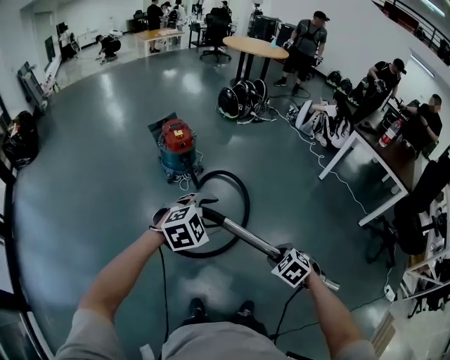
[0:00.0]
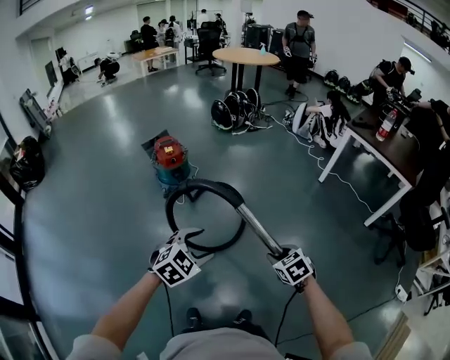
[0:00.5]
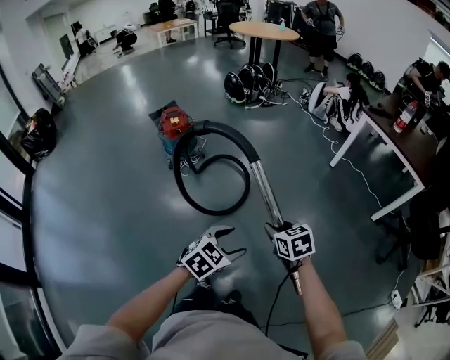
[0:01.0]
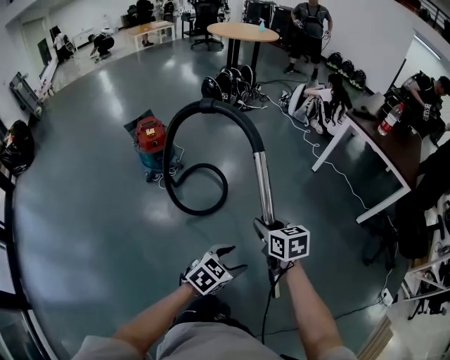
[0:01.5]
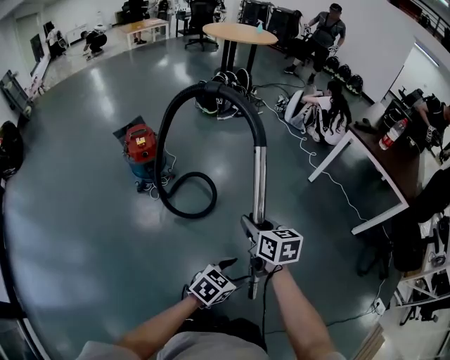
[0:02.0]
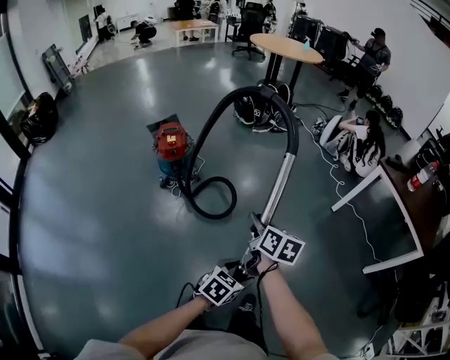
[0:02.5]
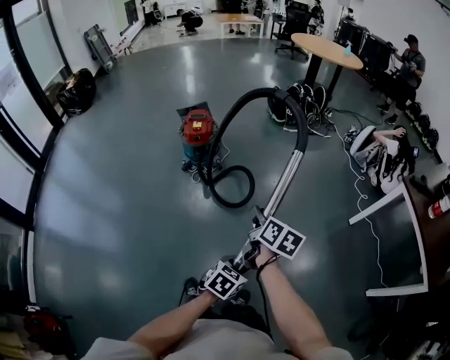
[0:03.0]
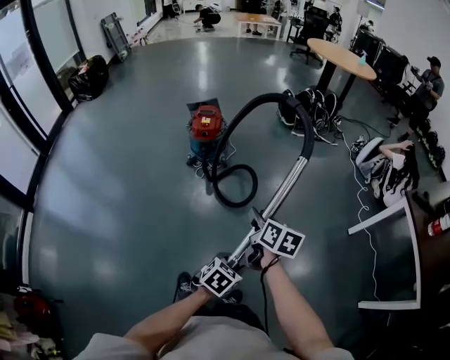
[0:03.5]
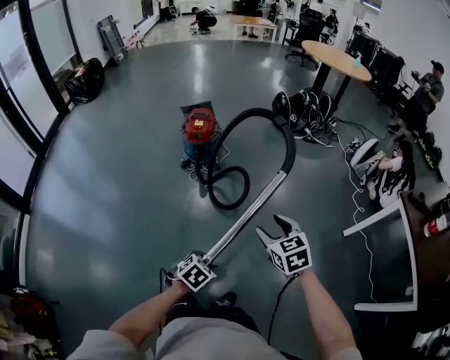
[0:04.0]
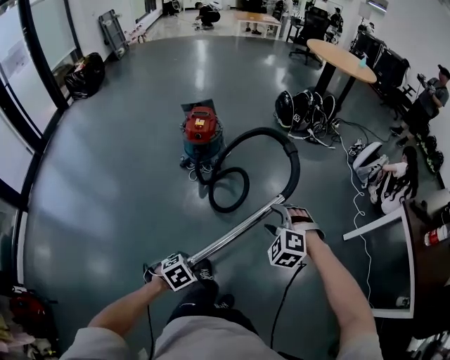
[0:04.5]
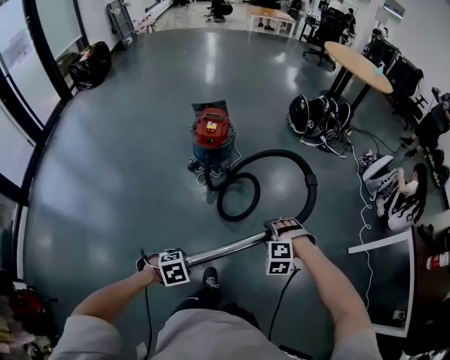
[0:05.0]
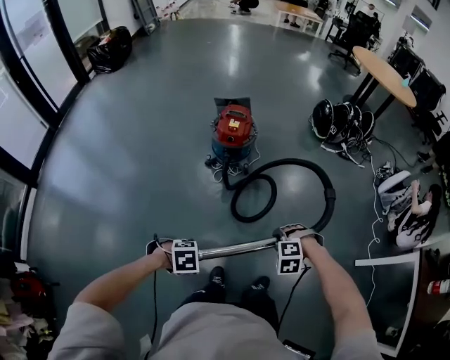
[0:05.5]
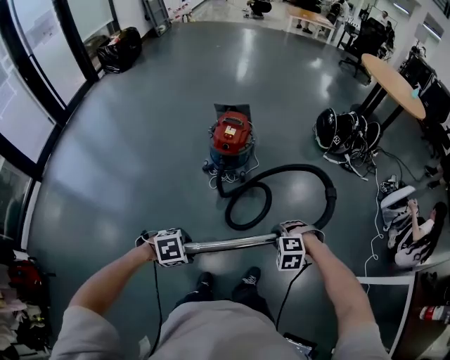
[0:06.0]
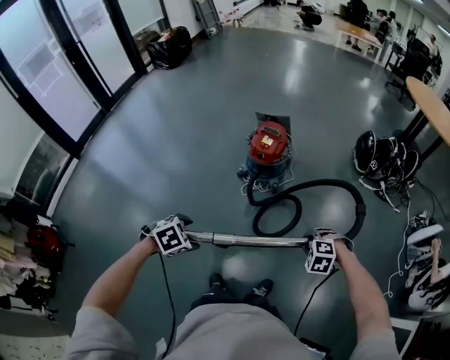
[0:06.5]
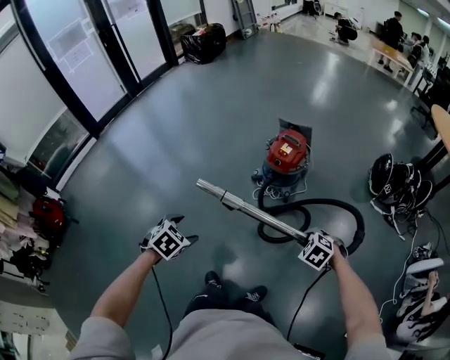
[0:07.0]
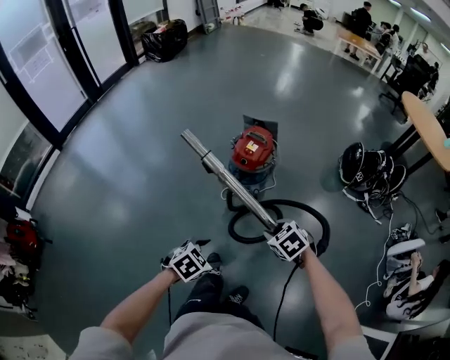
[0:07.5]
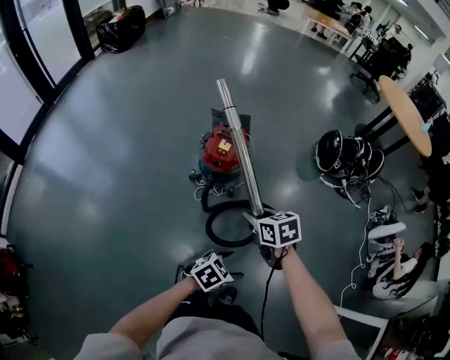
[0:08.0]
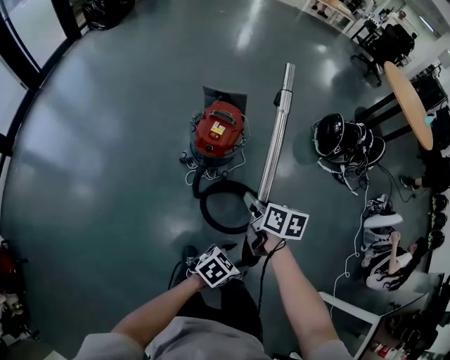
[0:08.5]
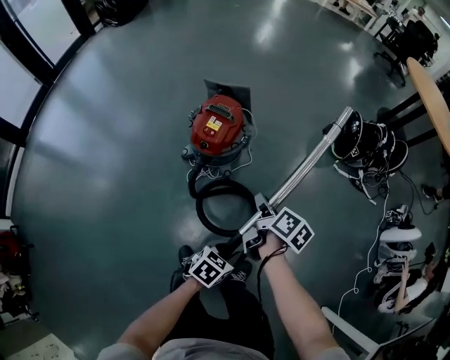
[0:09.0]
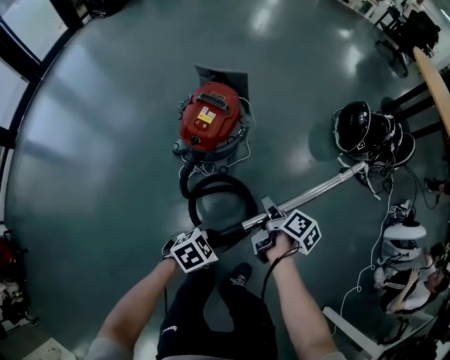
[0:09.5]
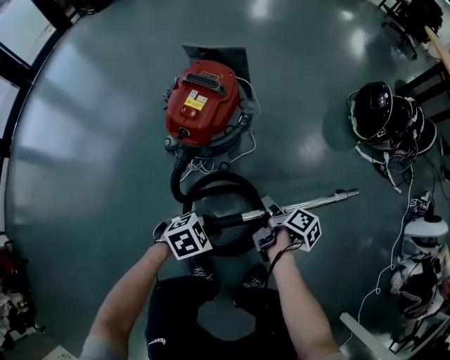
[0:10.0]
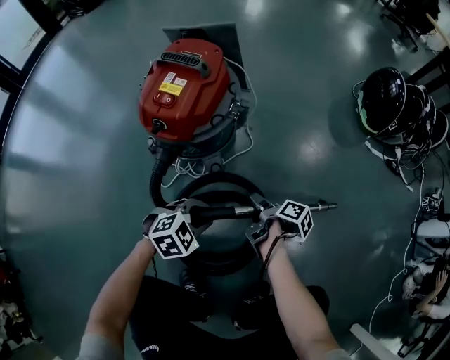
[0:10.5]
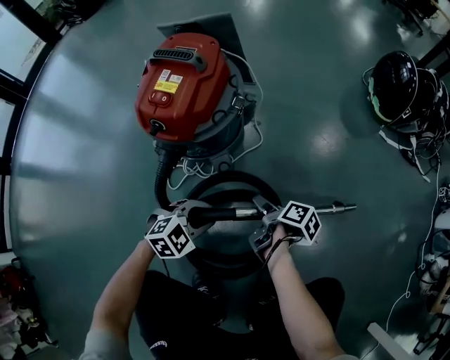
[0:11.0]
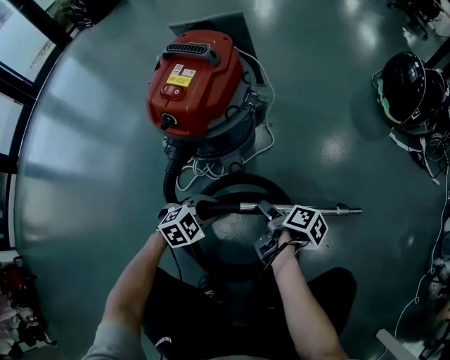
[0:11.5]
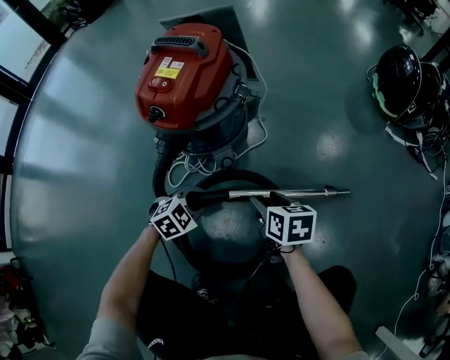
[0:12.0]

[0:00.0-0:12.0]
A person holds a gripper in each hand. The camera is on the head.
0:00.0 to 0:02.0: The left gripper goes some 35 cm to the right, forward and downward, and rotates around the line of its fingers by about 40 degrees, counterclockwise from behind. The right gripper goes roughly 35 cm forward, and tilts its fingers roughly 40 degrees upward.
0:02.0 to 0:04.0: The right gripper shifts by roughly 15 cm, twists roughly 40 degrees counterclockwise, seen from behind, and opens its fingers; the left gripper travels downward by about 10 cm, swivels roughly 40 degrees, and closes its fingers.
0:04.0 to 0:06.0: The right gripper changes place by some 30 cm, twists roughly 70 degrees counterclockwise, seen from behind, and closes up; the left gripper moves roughly 25 cm.
0:06.0 to 0:08.0: The right gripper changes place by approximately 30 cm, and twists roughly 70 degrees clockwise, seen from behind; the left gripper changes place by roughly 25 cm, and rotates some 30 degrees.
0:08.0 to 0:10.0: The two grippers go about 40 cm downward and forward. The right gripper rotates around the line of its fingers by roughly 80 degrees, clockwise from behind, while the left gripper closes up.
0:10.0 to 0:12.0: The two grippers go about 20 cm downward. The right gripper rotates around the line of its fingers by approximately 60 degrees, counterclockwise from behind.

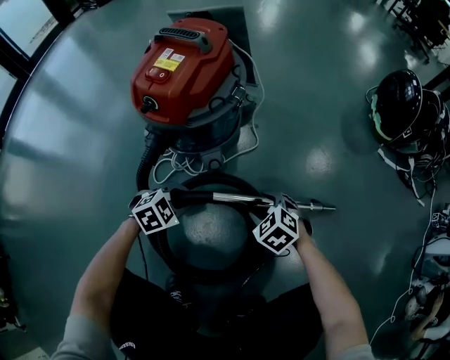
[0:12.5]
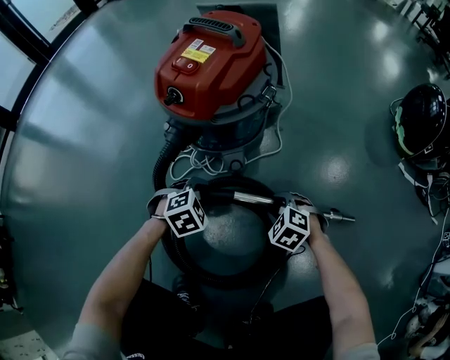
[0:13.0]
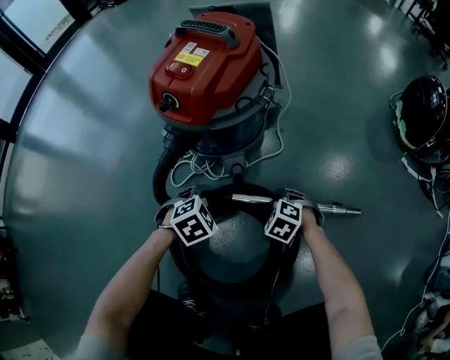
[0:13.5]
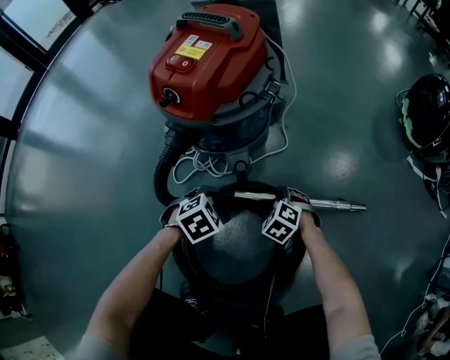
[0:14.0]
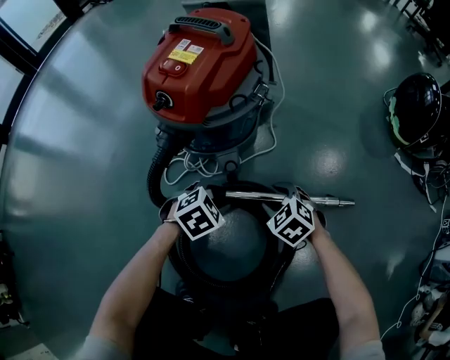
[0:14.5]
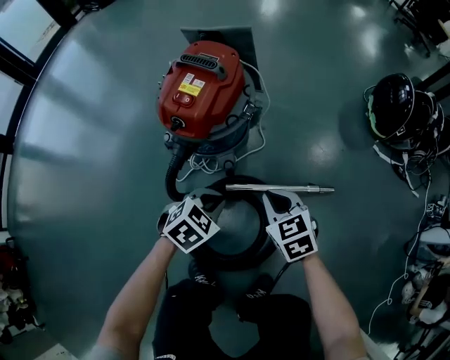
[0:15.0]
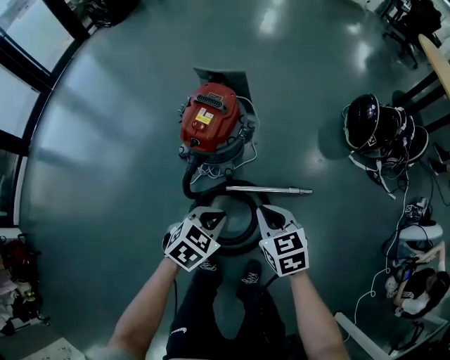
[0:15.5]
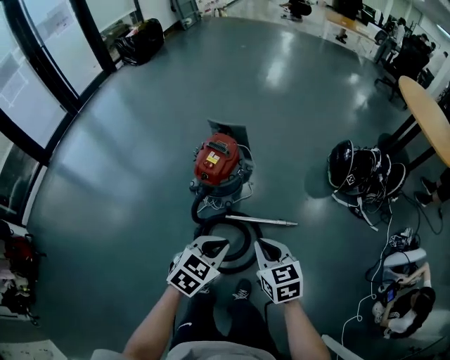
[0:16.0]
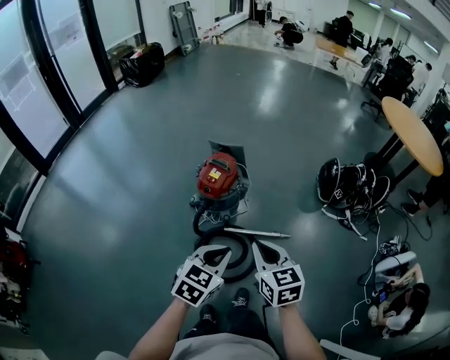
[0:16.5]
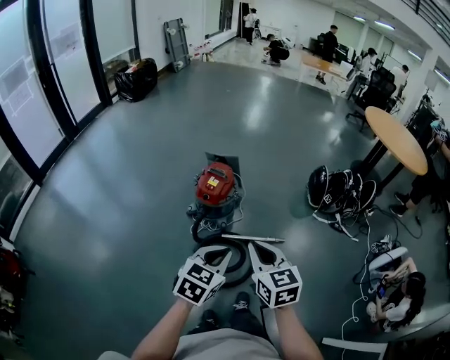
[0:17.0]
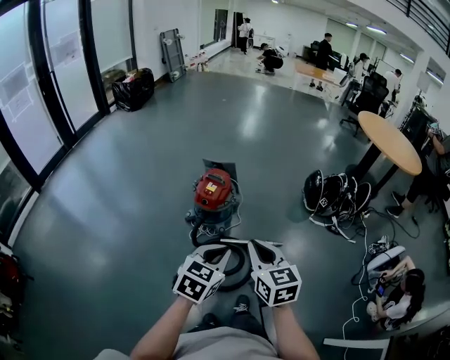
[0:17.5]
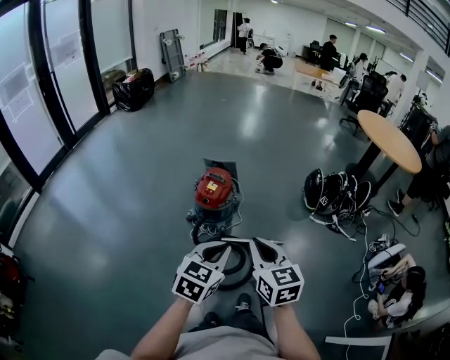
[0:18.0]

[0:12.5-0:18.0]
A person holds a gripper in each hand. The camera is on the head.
0:12.5 to 0:14.5: The right gripper goes downward and returns, approximately 10 cm each way. The left gripper goes some 5 cm to the right.
0:14.5 to 0:16.0: The two grippers go roughly 70 cm upward. The left gripper swivels roughly 30 degrees, and closes up. Meanwhile the right gripper swivels some 40 degrees, and closes.
0:16.0 to 0:18.0: The left gripper goes roughly 25 cm backward and upward; the right gripper travels upward and backward by approximately 25 cm, and turns by roughly 20 degrees.

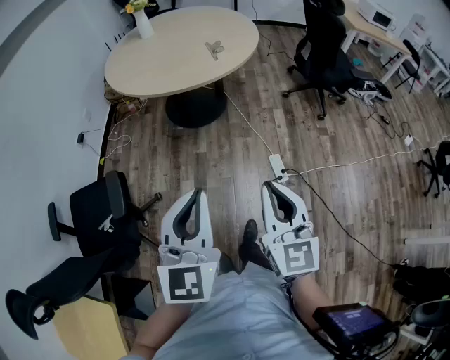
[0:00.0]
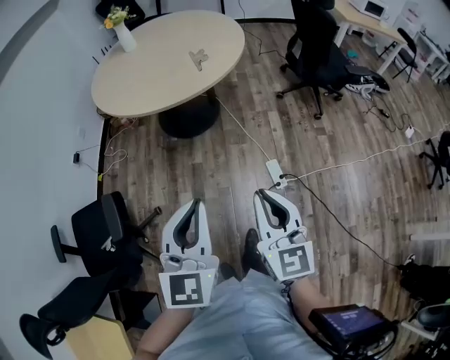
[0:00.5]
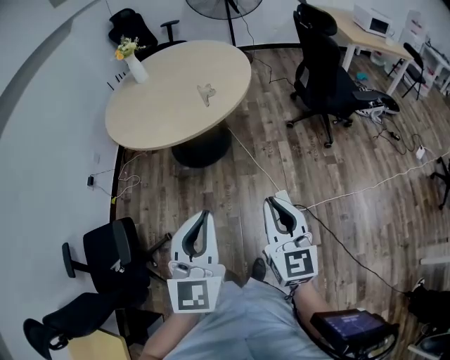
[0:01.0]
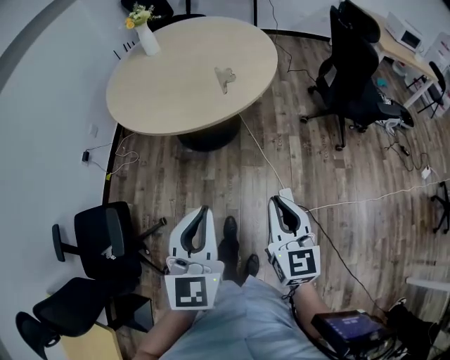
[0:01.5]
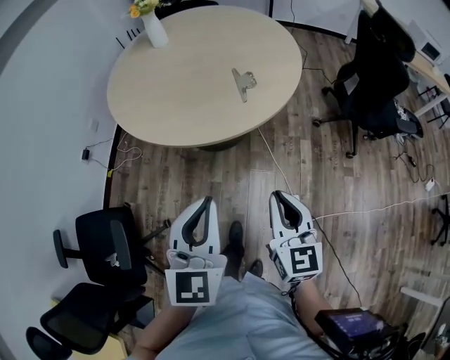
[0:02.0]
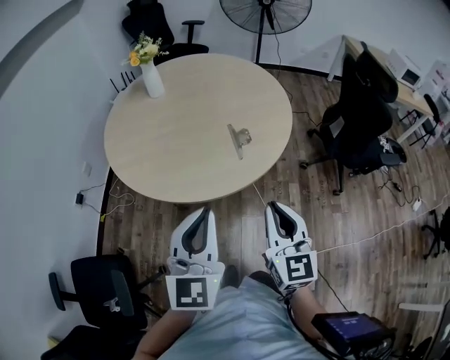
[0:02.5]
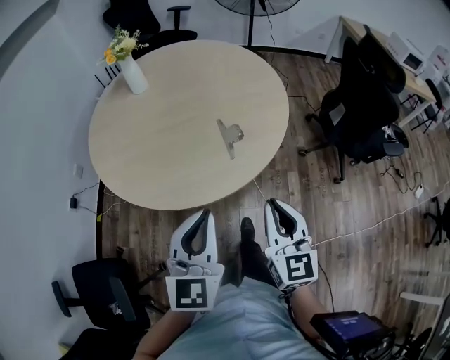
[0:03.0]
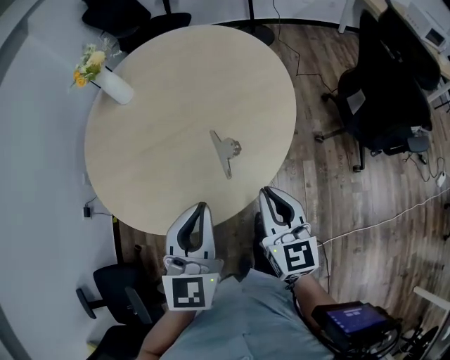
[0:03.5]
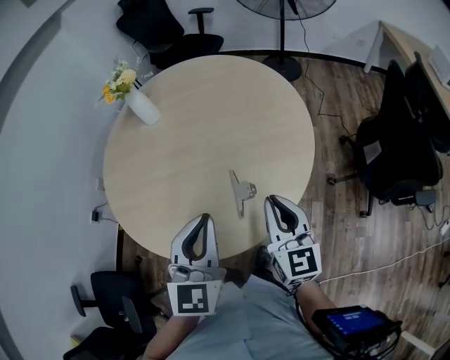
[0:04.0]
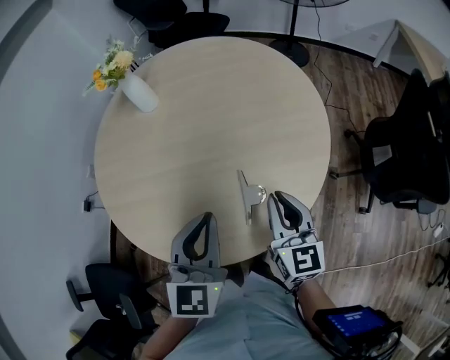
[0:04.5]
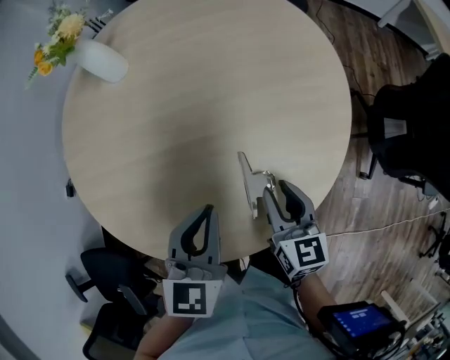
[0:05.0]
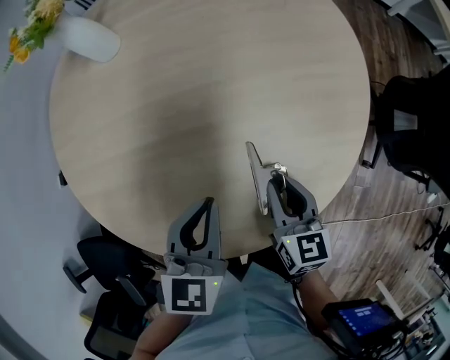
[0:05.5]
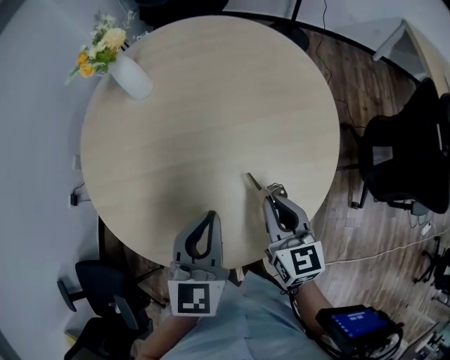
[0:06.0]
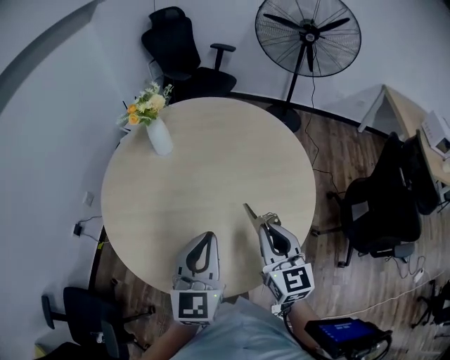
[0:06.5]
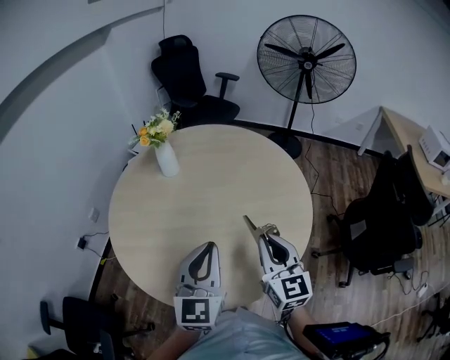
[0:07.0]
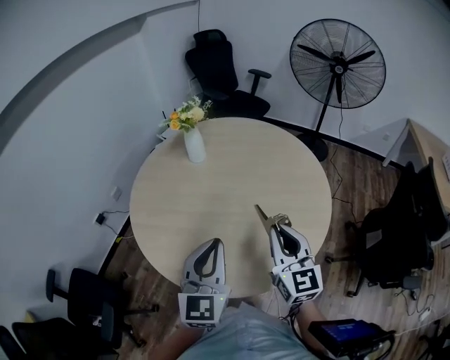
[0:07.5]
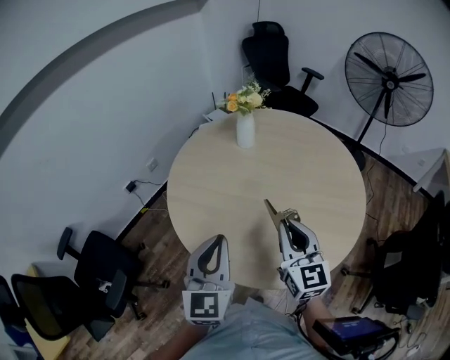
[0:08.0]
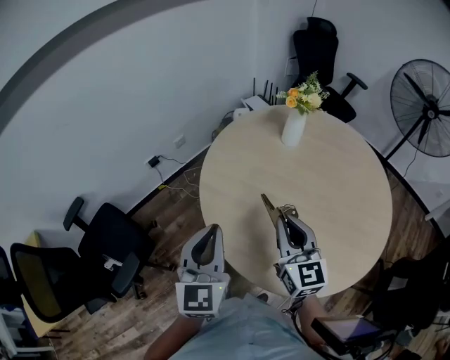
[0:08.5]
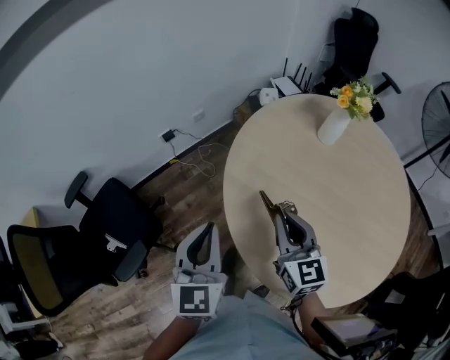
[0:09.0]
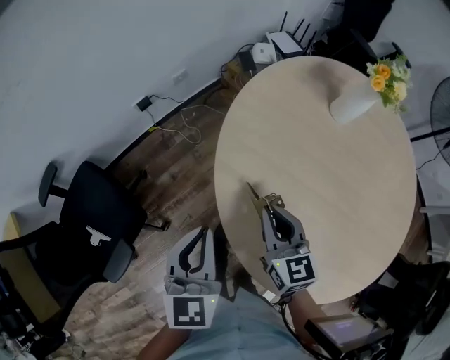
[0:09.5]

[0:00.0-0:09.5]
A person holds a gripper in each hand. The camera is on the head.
0:00.0 to 0:02.0: Both grippers travel together forward, approximately 40 cm.
0:02.0 to 0:04.0: The pair of grippers is taken forward, roughly 40 cm.
0:04.0 to 0:05.5: The left gripper is displaced downward, forward and to the left by roughly 25 cm, and swivels about 30 degrees. Meanwhile the right gripper heads downward and forward, covering approximately 25 cm, and changes its angle by some 30 degrees.
0:05.5 to 0:07.5: The left gripper is displaced upward and backward by roughly 30 cm, and angles its fingers upward, by about 30 degrees. The right gripper moves upward, some 30 cm, and angles its fingers upward, by about 30 degrees.
0:07.5 to 0:09.5: The pair of grippers is taken some 50 cm. The left gripper changes its angle by about 40 degrees. Meanwhile the right gripper rotates about 40 degrees.
